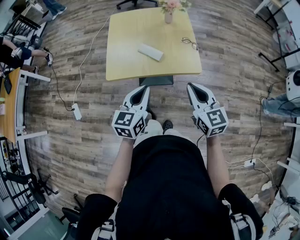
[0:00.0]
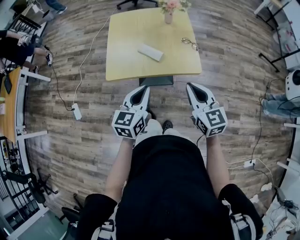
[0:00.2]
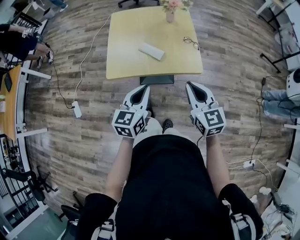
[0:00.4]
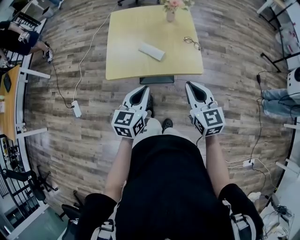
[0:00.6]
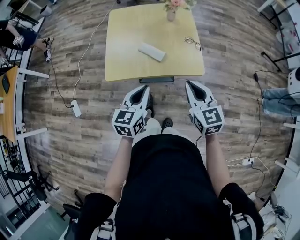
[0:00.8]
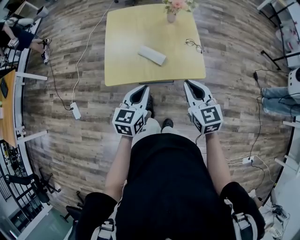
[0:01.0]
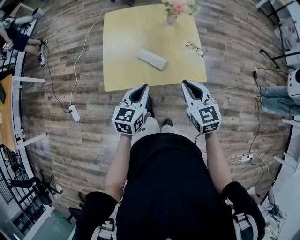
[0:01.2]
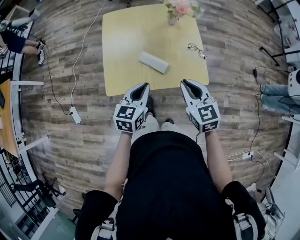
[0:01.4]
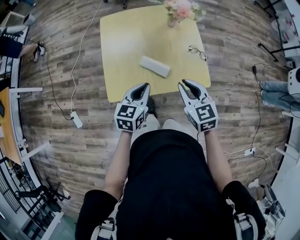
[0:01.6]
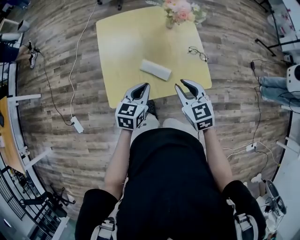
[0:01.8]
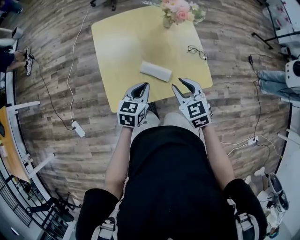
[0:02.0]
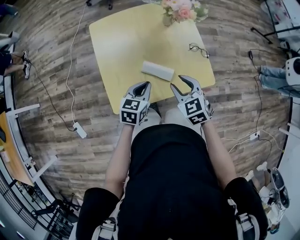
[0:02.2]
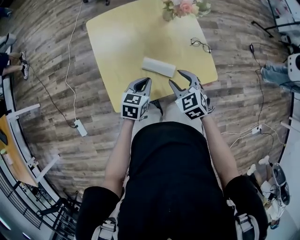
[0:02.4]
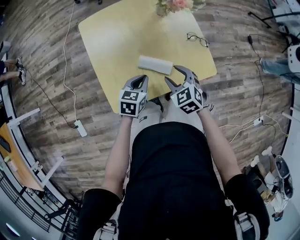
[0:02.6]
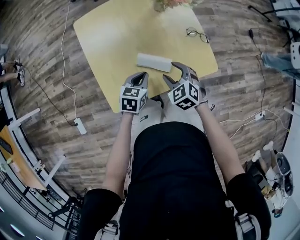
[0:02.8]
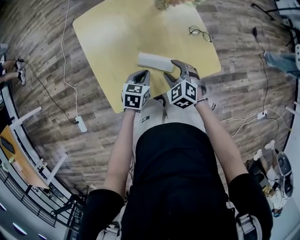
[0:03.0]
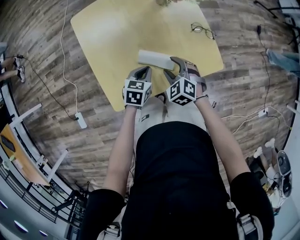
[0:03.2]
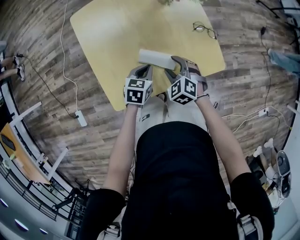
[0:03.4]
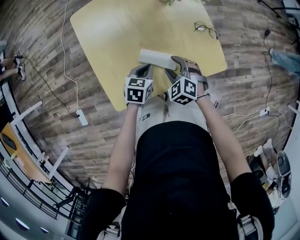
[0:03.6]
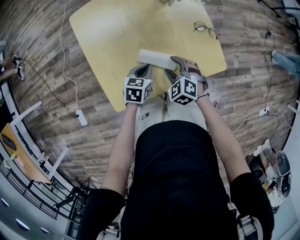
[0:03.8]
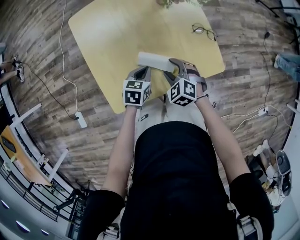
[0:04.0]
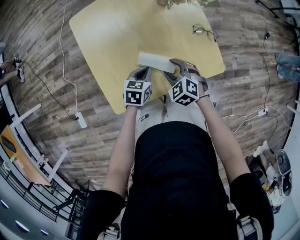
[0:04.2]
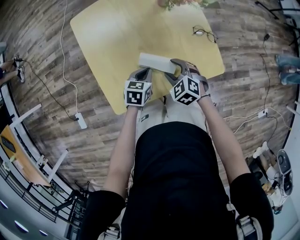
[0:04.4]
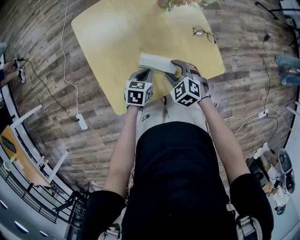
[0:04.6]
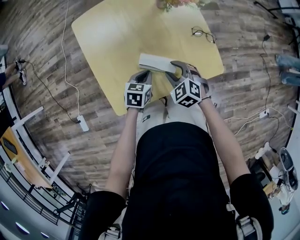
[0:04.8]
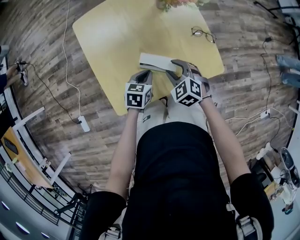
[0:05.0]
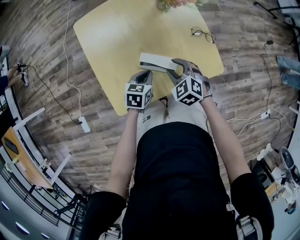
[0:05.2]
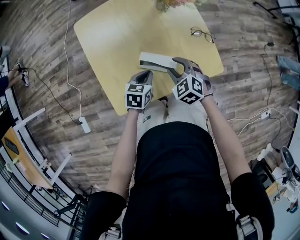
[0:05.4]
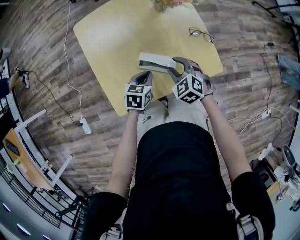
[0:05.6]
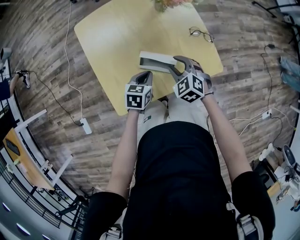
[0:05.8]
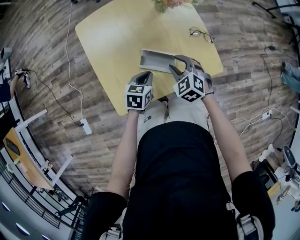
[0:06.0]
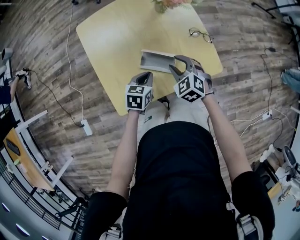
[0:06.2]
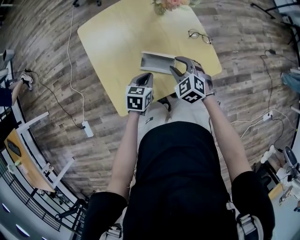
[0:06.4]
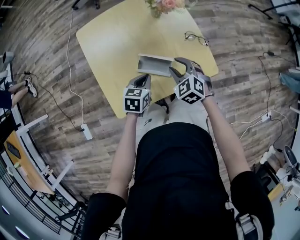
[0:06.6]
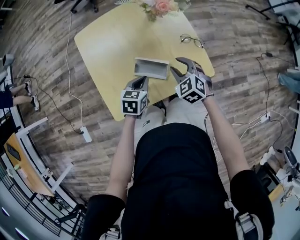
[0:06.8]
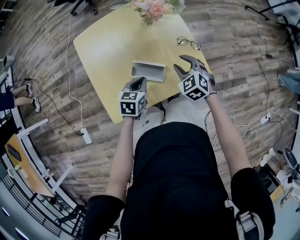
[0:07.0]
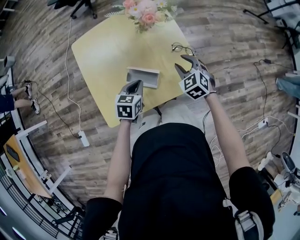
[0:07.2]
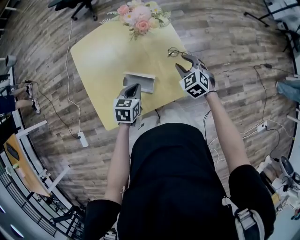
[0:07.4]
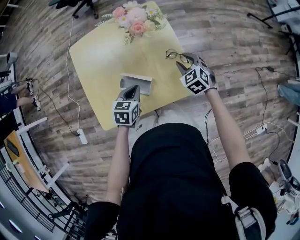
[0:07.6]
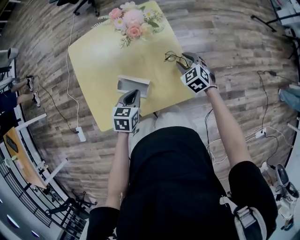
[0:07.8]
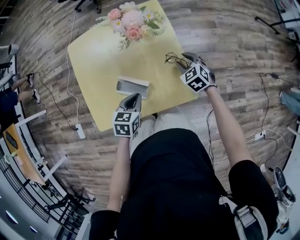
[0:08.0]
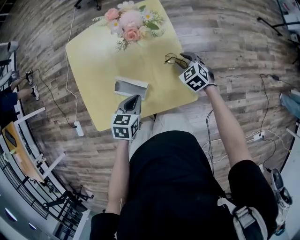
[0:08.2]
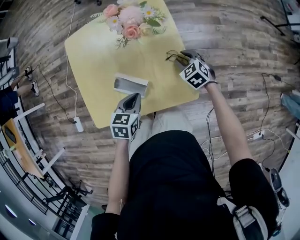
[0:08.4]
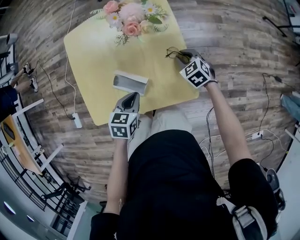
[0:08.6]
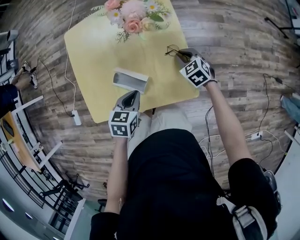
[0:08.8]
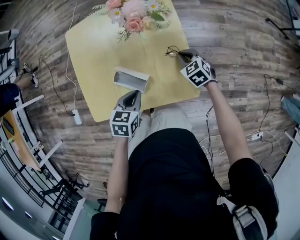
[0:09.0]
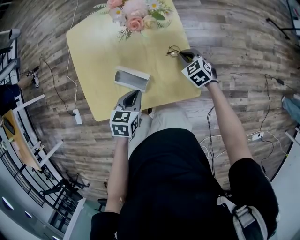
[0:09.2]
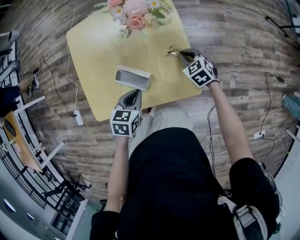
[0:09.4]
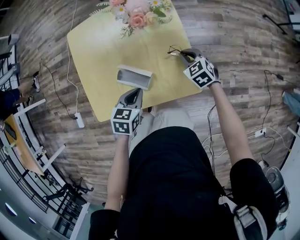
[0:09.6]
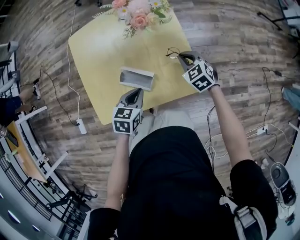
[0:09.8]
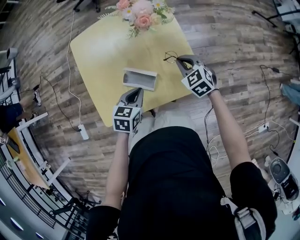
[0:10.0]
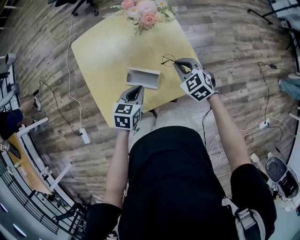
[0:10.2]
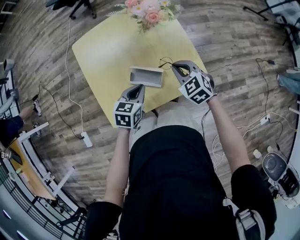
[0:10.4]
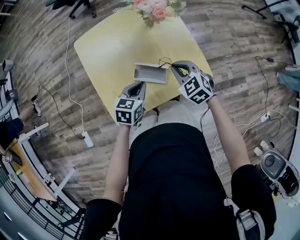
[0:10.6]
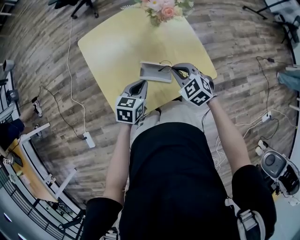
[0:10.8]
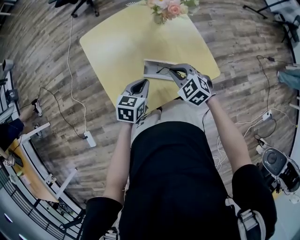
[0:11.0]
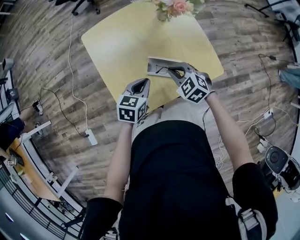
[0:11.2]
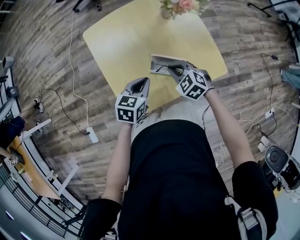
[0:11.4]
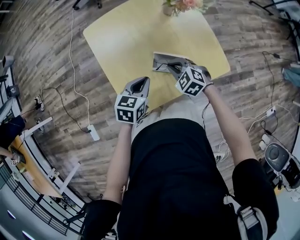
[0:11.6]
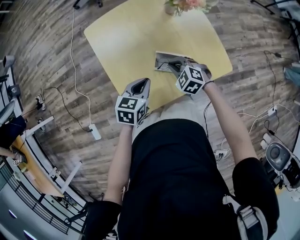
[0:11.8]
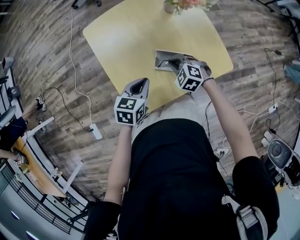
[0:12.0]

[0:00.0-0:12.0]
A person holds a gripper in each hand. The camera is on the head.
0:00.0 to 0:01.6: The right gripper moves forward and to the left, some 20 cm. The left gripper moves forward, approximately 20 cm.
0:01.6 to 0:03.0: Both grippers move downward and forward, roughly 20 cm. The right gripper changes its angle by approximately 30 degrees, and opens its fingers, while the left gripper swivels roughly 20 degrees.
0:03.0 to 0:04.4: The grippers make only small movements.
0:04.4 to 0:06.0: The right gripper shifts by roughly 5 cm.
0:06.0 to 0:07.6: The right gripper shifts approximately 20 cm to the right and forward; the left gripper shifts some 10 cm to the right, upward and forward.
0:07.6 to 0:09.0: The right gripper goes approximately 10 cm downward, and closes up.
0:09.0 to 0:10.4: The left gripper travels to the left by roughly 10 cm; the right gripper heads upward, to the left and backward, covering about 20 cm.
0:10.4 to 0:12.0: The right gripper moves to the left and downward, approximately 20 cm; the left gripper travels to the left by roughly 15 cm.

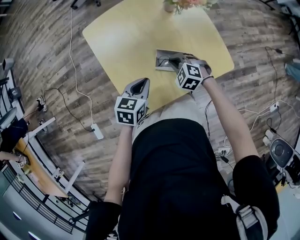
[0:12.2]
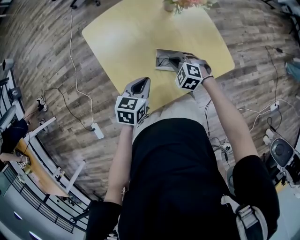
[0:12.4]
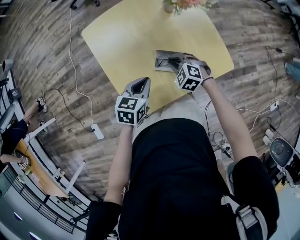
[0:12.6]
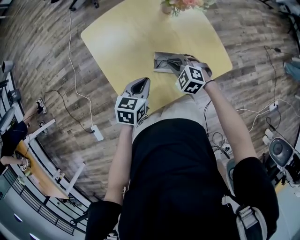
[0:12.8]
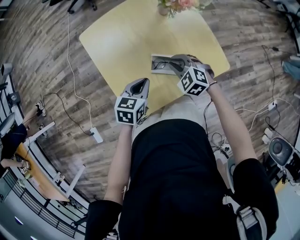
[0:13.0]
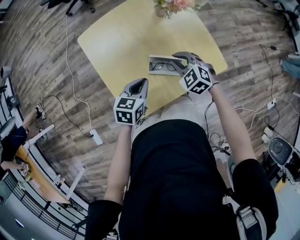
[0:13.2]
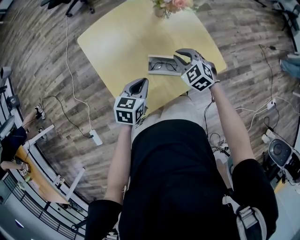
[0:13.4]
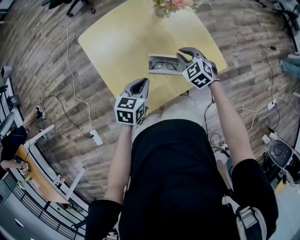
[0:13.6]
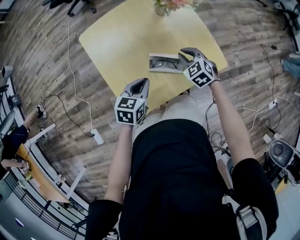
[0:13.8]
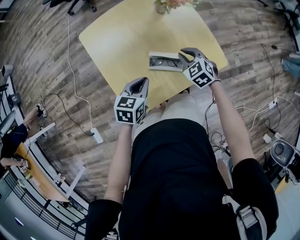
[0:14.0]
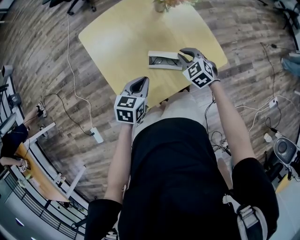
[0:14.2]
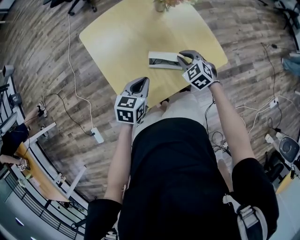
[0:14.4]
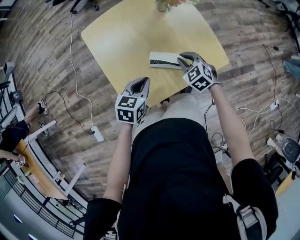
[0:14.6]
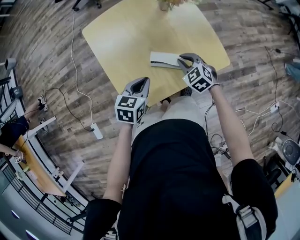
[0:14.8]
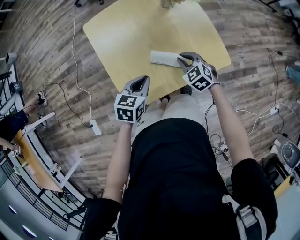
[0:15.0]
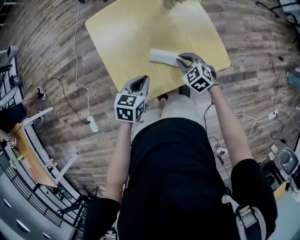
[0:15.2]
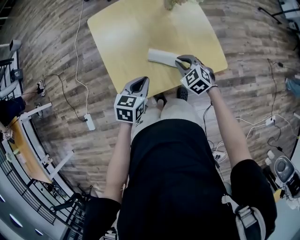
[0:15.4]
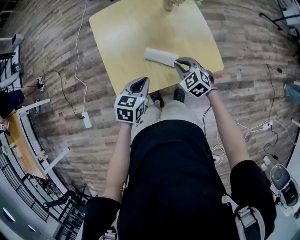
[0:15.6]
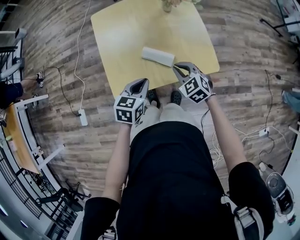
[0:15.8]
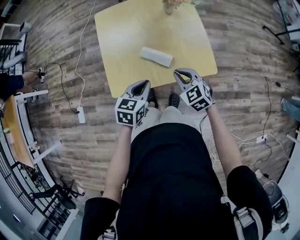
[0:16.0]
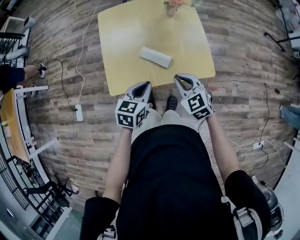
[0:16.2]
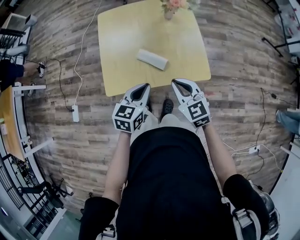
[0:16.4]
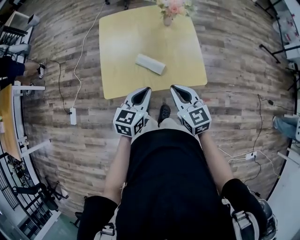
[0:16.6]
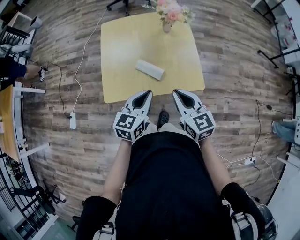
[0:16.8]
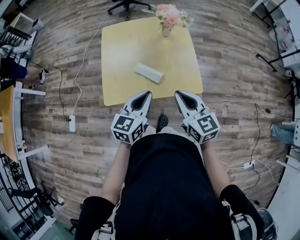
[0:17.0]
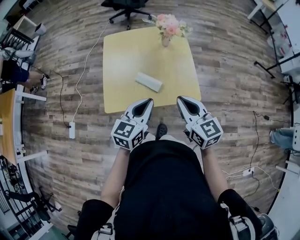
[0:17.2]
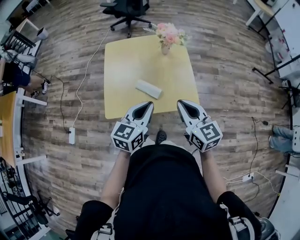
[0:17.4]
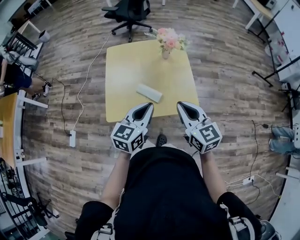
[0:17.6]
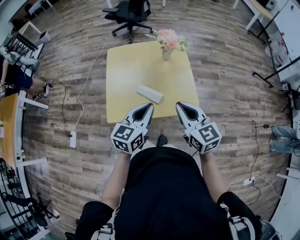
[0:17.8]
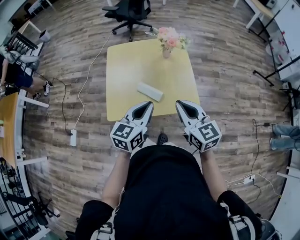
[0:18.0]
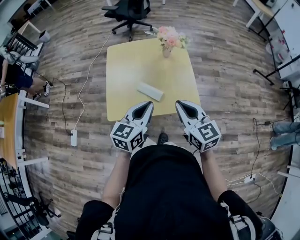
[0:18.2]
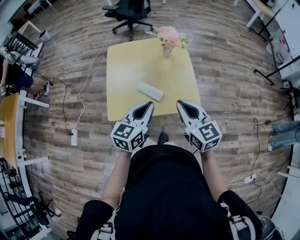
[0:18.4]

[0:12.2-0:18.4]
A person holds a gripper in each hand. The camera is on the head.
0:12.2 to 0:13.8: The right gripper is displaced to the right and upward by roughly 10 cm, and changes its angle by roughly 20 degrees.
0:13.8 to 0:15.4: Both grippers travel together backward, about 5 cm.
0:15.4 to 0:16.8: The left gripper shifts some 20 cm to the right, upward and backward, and changes its angle by roughly 20 degrees. Meanwhile the right gripper moves upward and backward, roughly 25 cm, and swivels approximately 40 degrees.
0:16.8 to 0:18.4: The grippers both shift upward by roughly 10 cm.

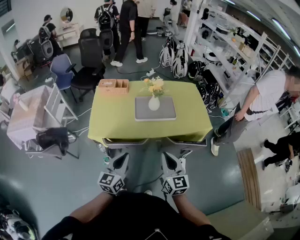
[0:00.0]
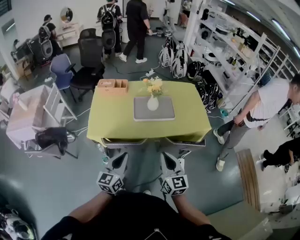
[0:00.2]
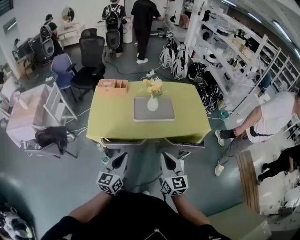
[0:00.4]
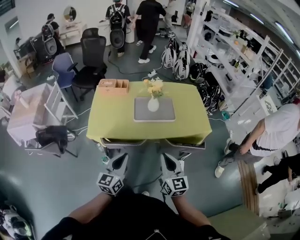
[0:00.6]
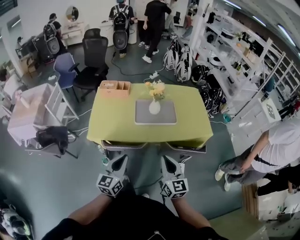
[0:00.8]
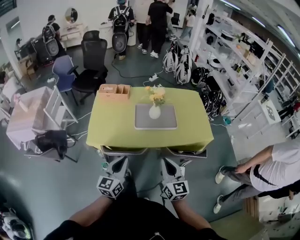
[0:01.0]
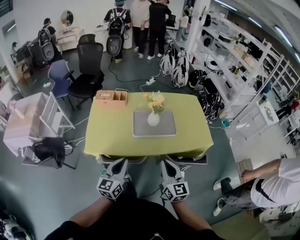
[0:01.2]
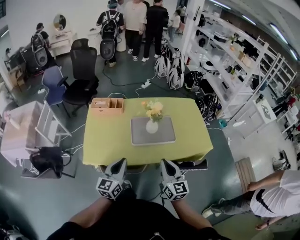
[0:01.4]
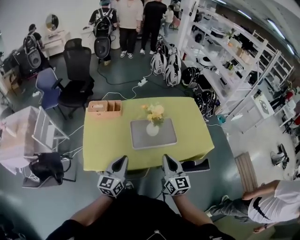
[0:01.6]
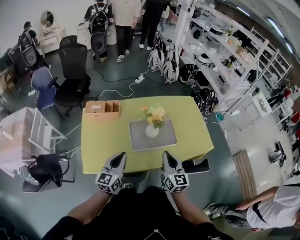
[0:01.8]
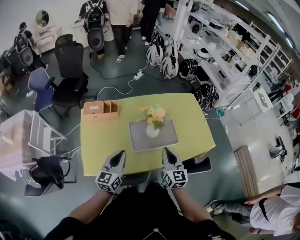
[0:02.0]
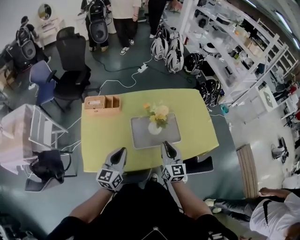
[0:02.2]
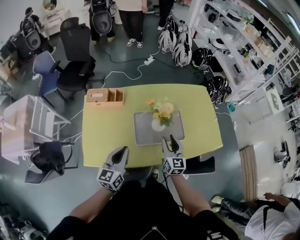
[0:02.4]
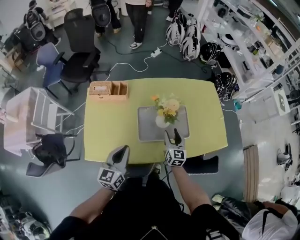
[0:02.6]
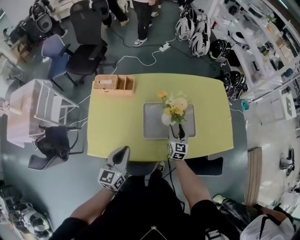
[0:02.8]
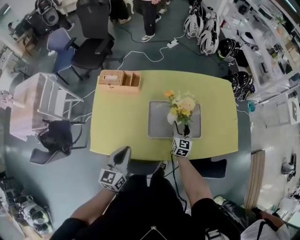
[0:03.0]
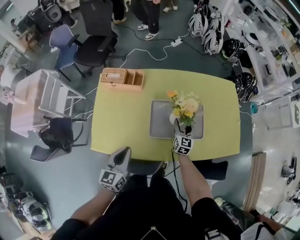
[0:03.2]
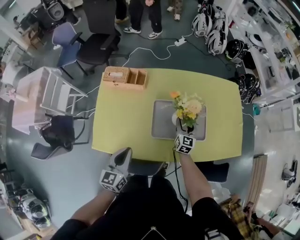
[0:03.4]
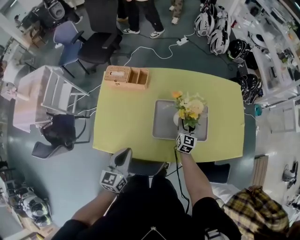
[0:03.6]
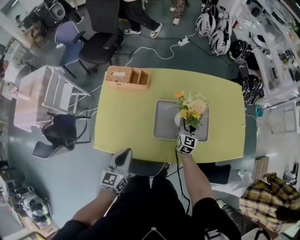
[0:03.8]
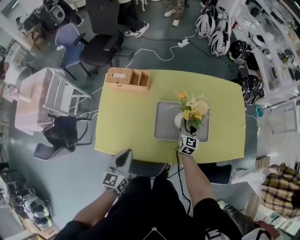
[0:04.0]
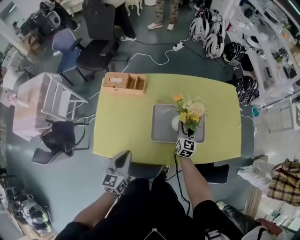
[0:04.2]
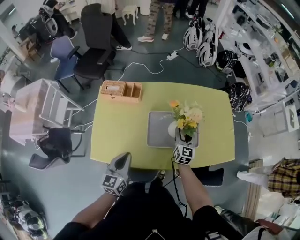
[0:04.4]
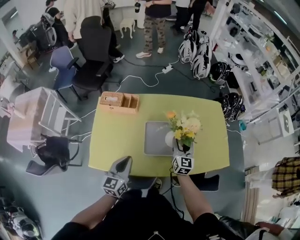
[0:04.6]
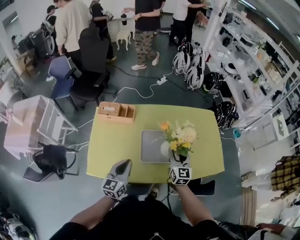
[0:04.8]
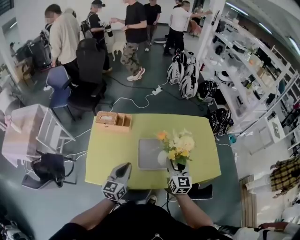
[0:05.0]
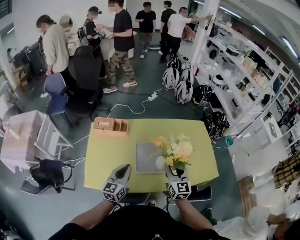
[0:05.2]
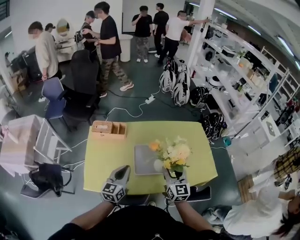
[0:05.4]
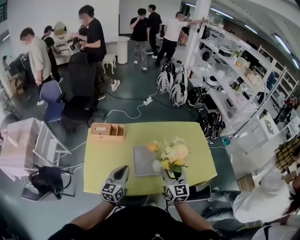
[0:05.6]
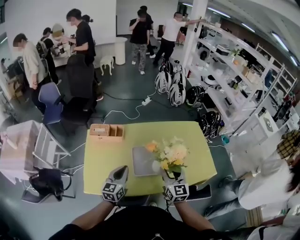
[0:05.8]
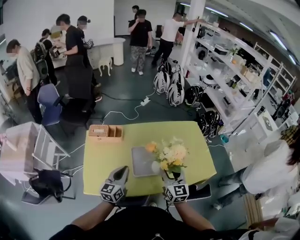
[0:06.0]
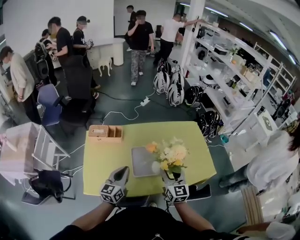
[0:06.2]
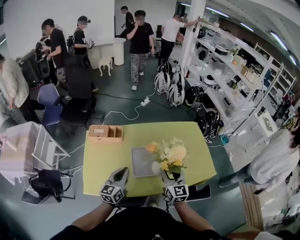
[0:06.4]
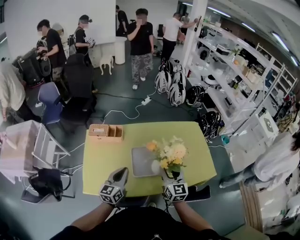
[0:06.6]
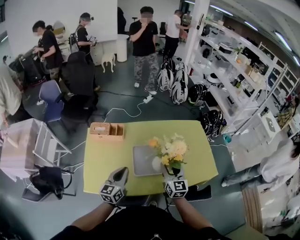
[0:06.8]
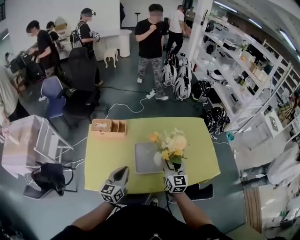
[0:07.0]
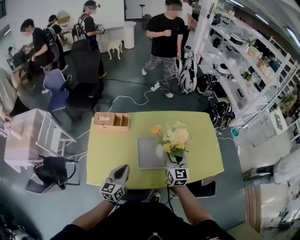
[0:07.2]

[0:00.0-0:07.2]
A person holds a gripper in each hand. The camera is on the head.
0:00.0 to 0:01.4: Both grippers travel together forward, approximately 20 cm.
0:01.4 to 0:02.8: The right gripper goes roughly 50 cm forward and downward, and opens, while the left gripper heads forward and downward, covering some 25 cm.
0:02.8 to 0:04.4: The right gripper heads upward, covering approximately 5 cm.
0:04.4 to 0:05.8: The right gripper heads upward and backward, covering some 30 cm. Meanwhile the left gripper moves upward, about 10 cm.
0:05.8 to 0:07.2: The right gripper travels forward and downward by roughly 15 cm, while the left gripper shifts by approximately 5 cm.
